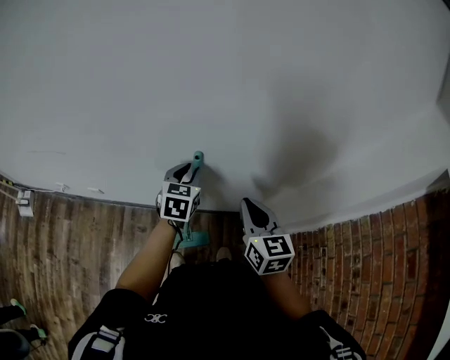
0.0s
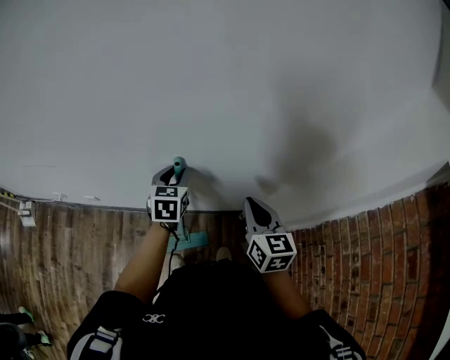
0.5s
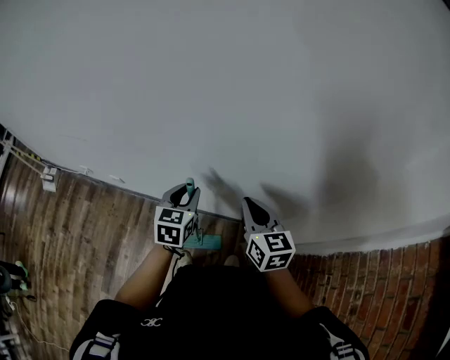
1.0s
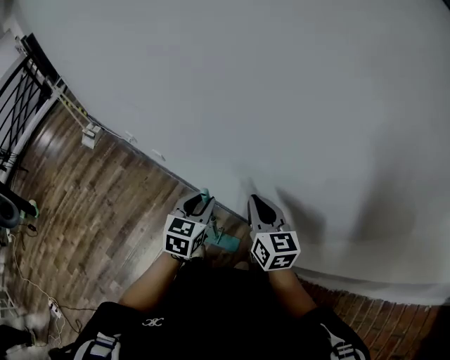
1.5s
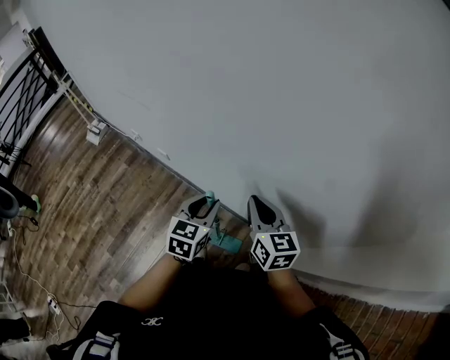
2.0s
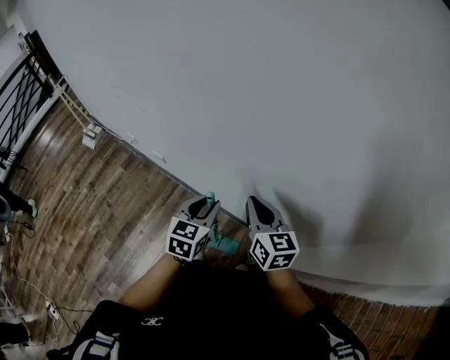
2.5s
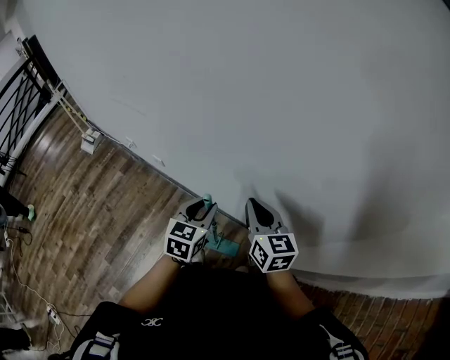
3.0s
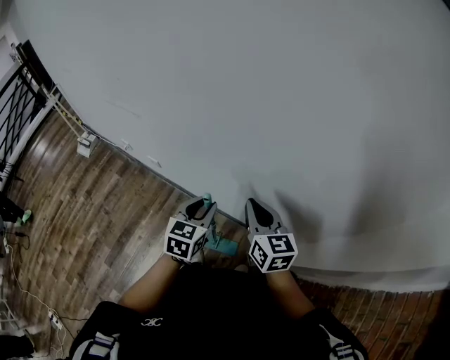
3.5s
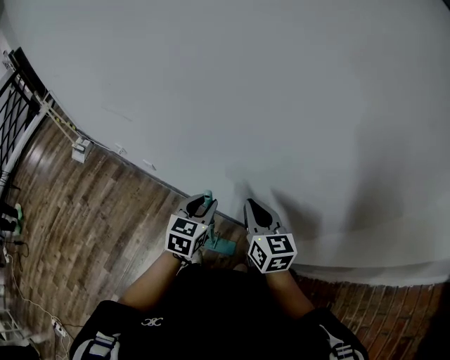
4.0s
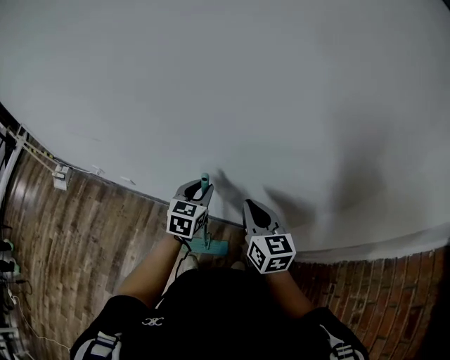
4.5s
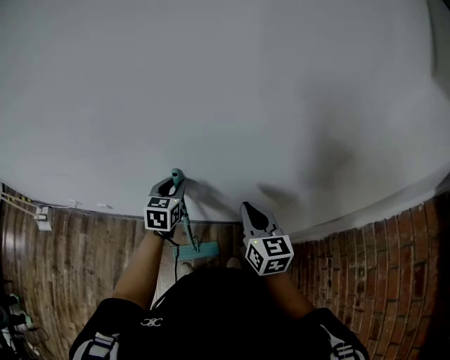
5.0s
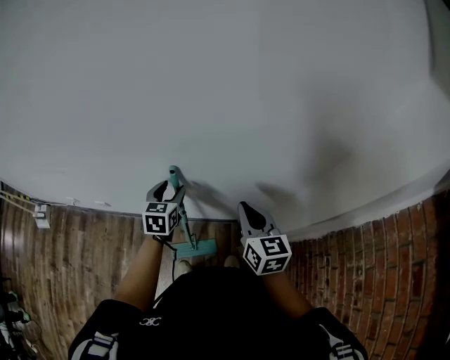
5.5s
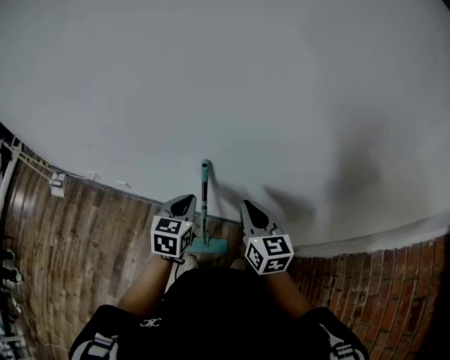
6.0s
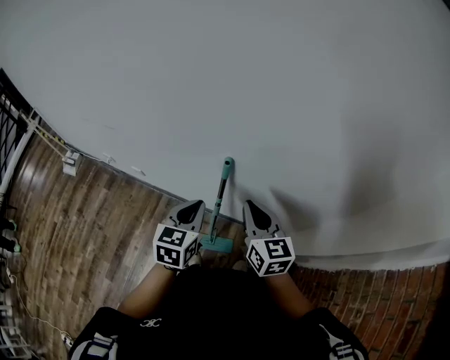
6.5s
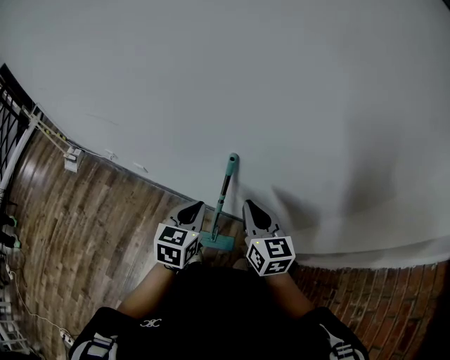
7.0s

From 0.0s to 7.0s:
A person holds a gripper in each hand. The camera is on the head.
From 0.0s to 2.0s: The right gripper moves about 10 cm, and rotates approximately 30 degrees. Meanwhile the left gripper shifts by about 15 cm, and changes its angle by roughly 20 degrees.
From 2.0s to 3.5s: The grippers move only a little.
From 3.5s to 5.0s: The right gripper is displaced to the right by some 15 cm, and rotates some 30 degrees. Meanwhile the left gripper heads forward and to the right, covering roughly 15 cm.
From 5.0s to 7.0s: The left gripper shifts approximately 15 cm backward and to the left, and closes up; the right gripper moves to the left, approximately 10 cm.

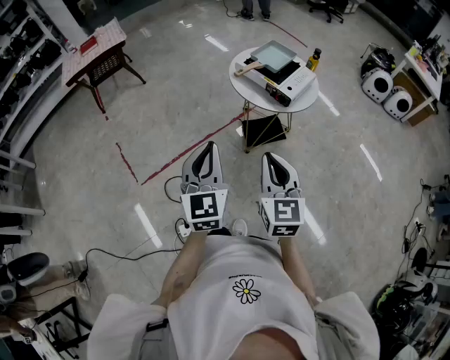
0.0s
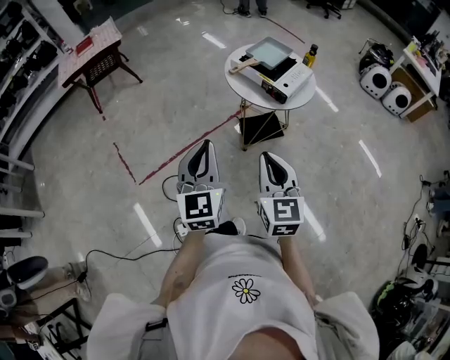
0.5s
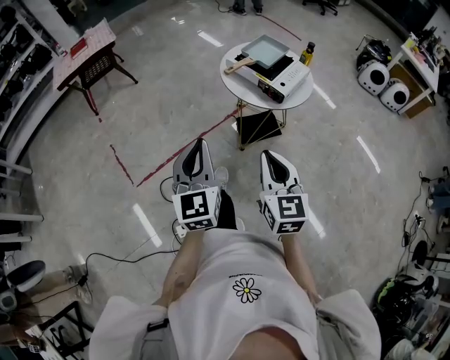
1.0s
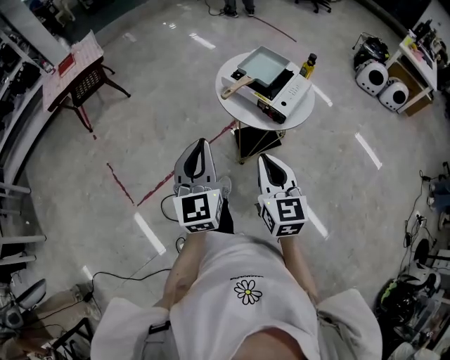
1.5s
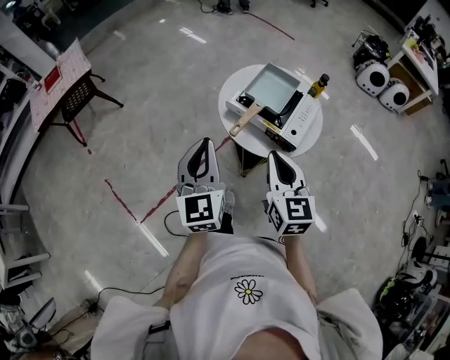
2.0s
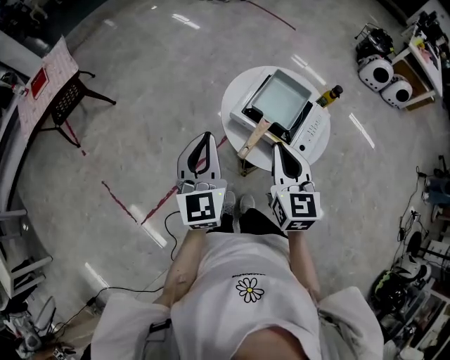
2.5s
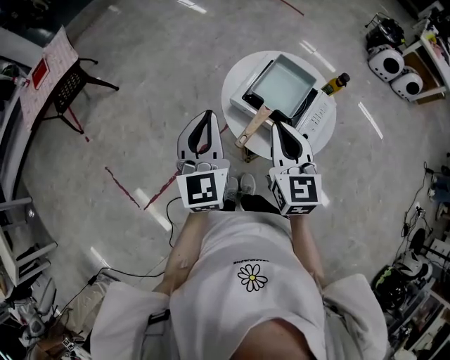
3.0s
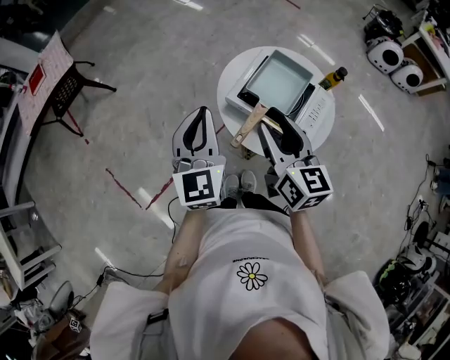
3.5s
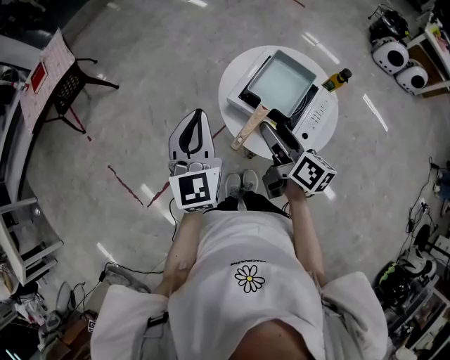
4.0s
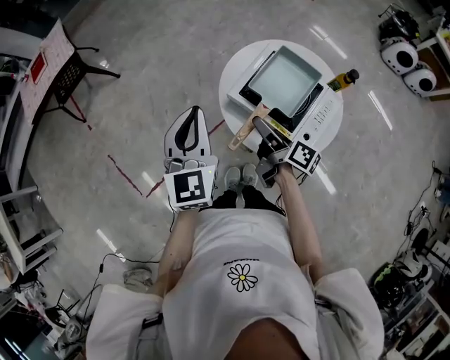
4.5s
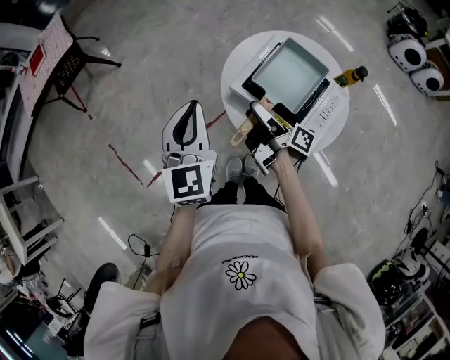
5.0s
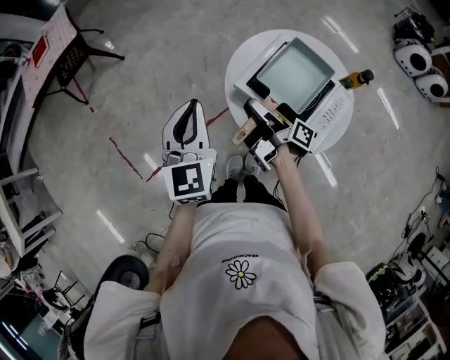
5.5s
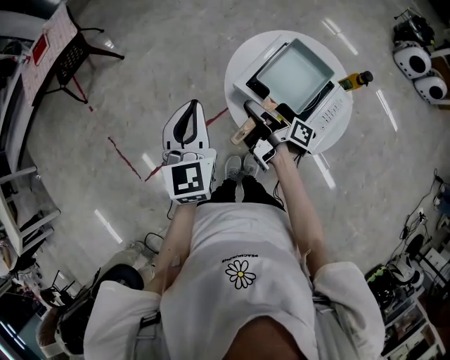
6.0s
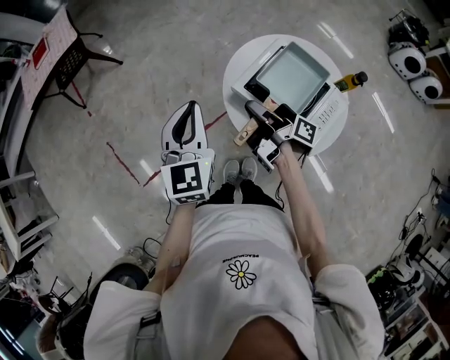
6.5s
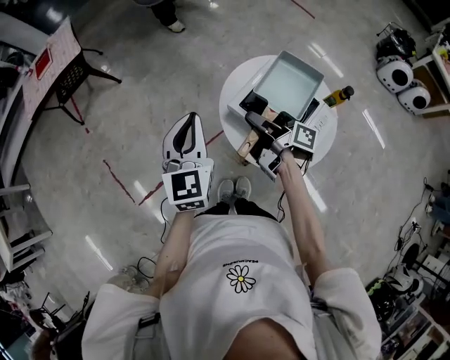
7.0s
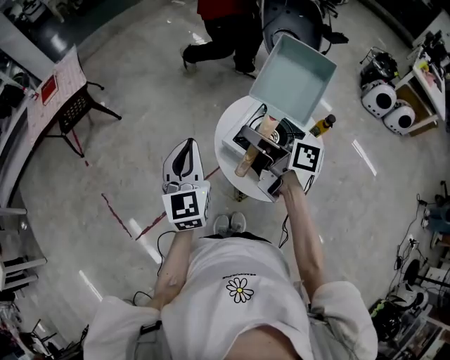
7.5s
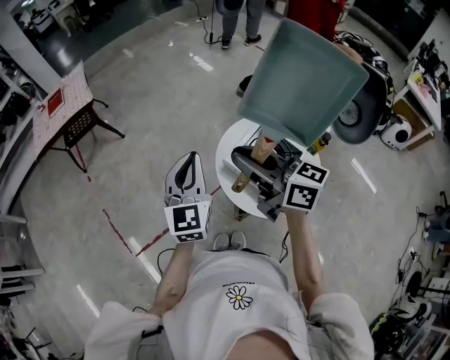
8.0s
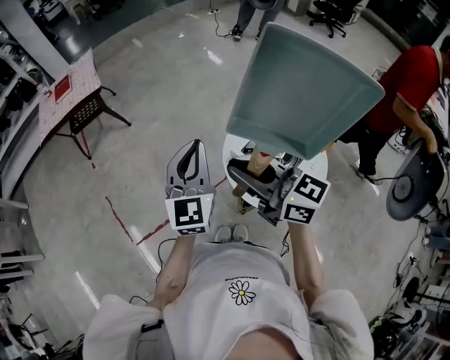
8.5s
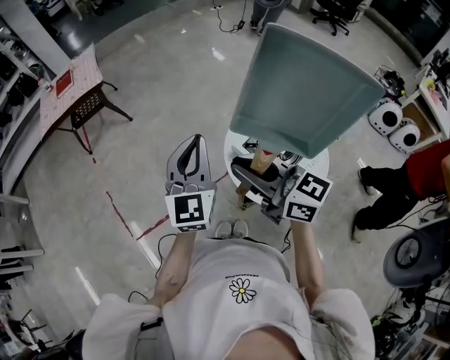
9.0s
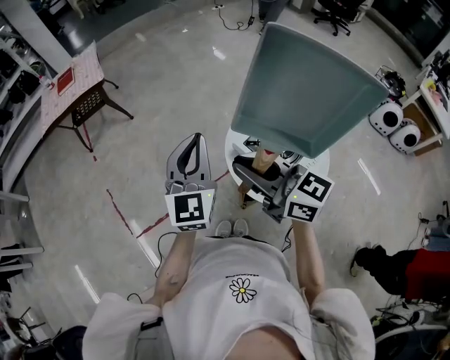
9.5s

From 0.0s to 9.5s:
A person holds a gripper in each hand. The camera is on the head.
From 0.0s to 2.0s: Both grippers travel together forward, about 30 cm.
From 2.0s to 4.0s: The right gripper heads forward and downward, covering about 20 cm, twists roughly 50 degrees clockwise, seen from behind, and opens up. The left gripper moves forward, roughly 15 cm.
From 4.0s to 5.5s: The right gripper shifts roughly 15 cm downward, forward and to the left, twists some 50 degrees clockwise, seen from behind, and closes up.
From 5.5s to 7.5s: The right gripper shifts roughly 20 cm upward, and swivels about 40 degrees.
From 7.5s to 9.5s: The right gripper heads to the left, upward and backward, covering roughly 15 cm, and twists approximately 50 degrees counterclockwise, seen from behind. The left gripper goes roughly 5 cm upward.

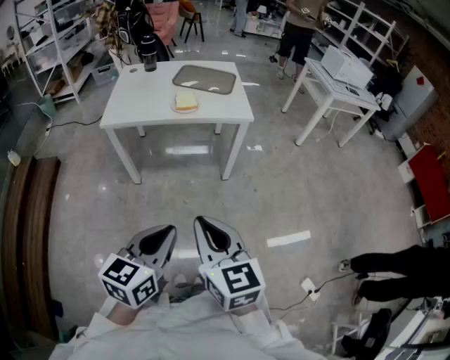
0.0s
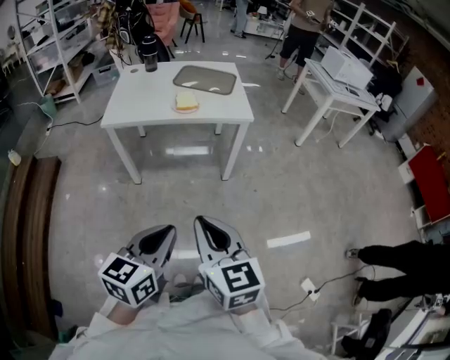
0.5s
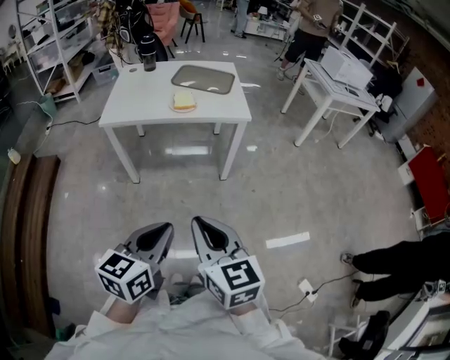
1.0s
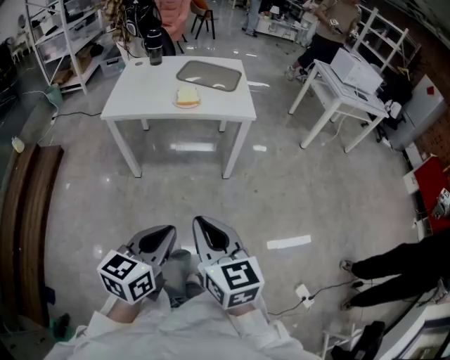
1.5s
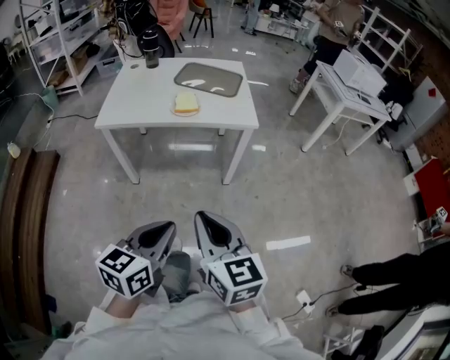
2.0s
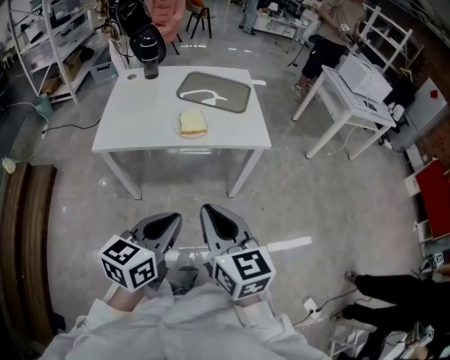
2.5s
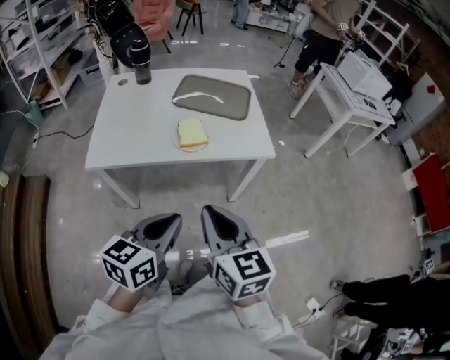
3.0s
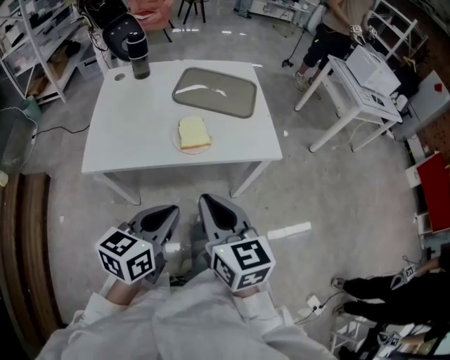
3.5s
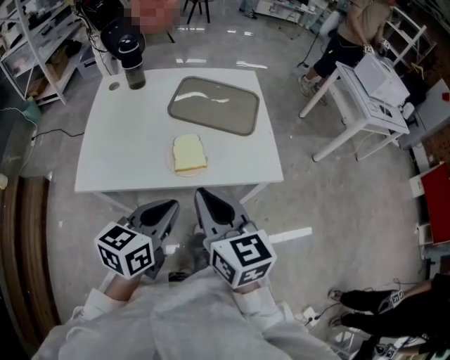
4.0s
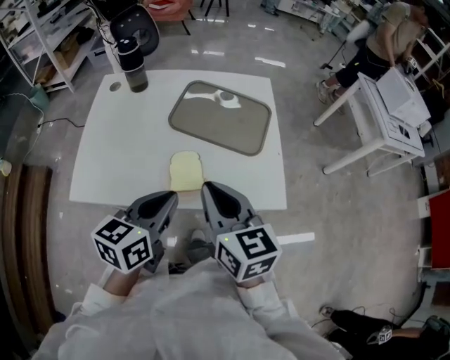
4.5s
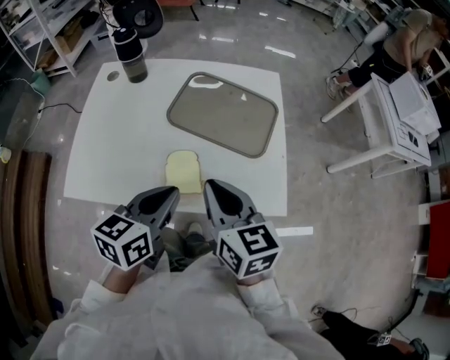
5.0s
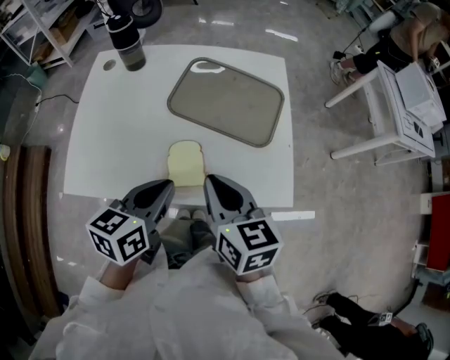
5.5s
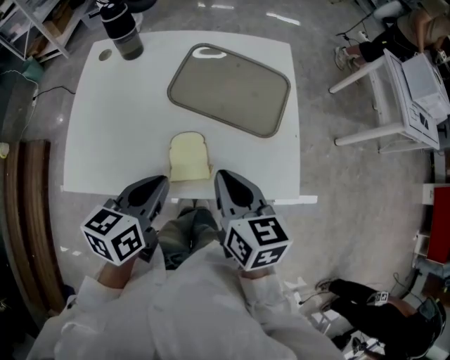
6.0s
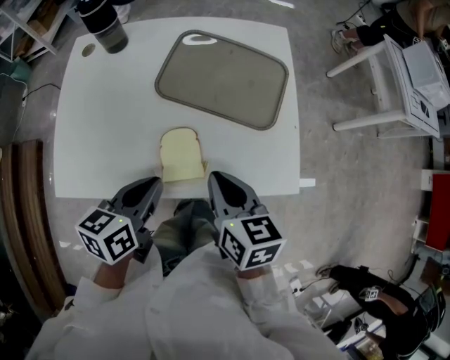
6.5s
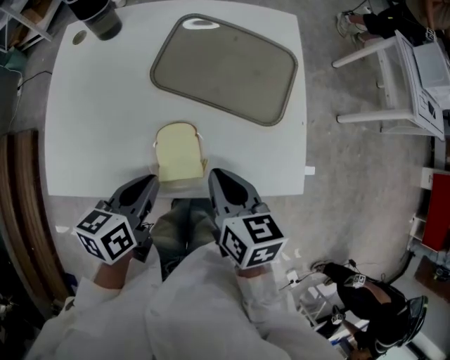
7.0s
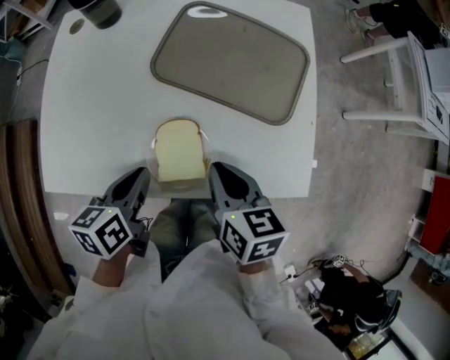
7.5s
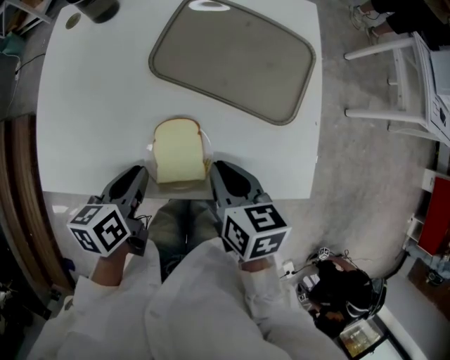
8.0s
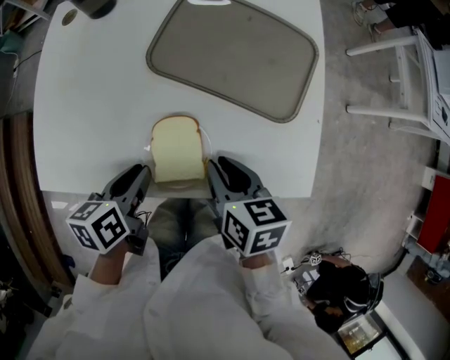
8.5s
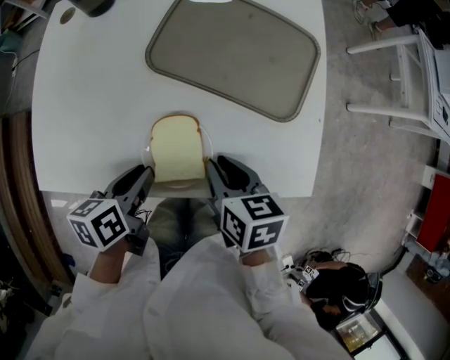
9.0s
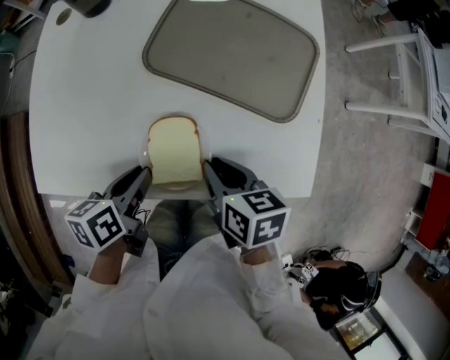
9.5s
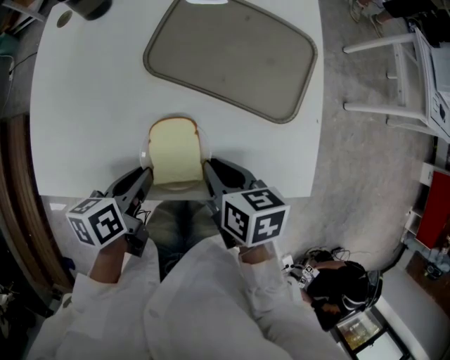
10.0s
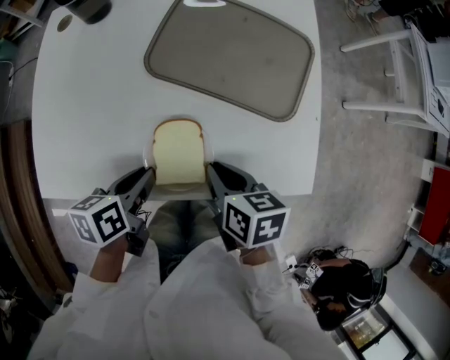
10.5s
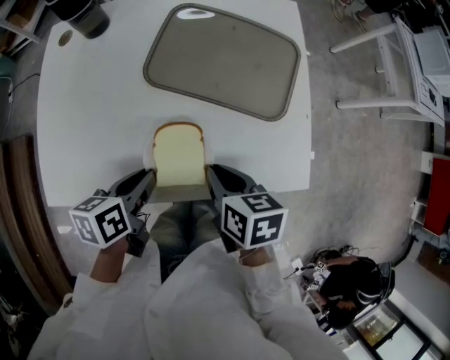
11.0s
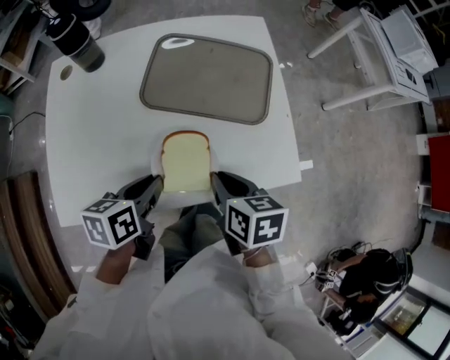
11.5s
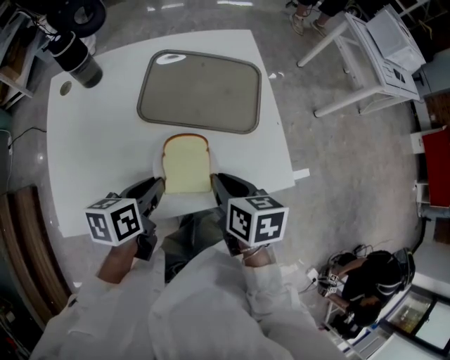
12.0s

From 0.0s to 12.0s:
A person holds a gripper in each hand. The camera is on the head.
From 0.0s to 2.0s: The grippers both shift forward by about 10 cm.
From 2.0s to 4.0s: The pair of grippers is taken forward, approximately 40 cm.
From 4.0s to 6.0s: The left gripper shifts approximately 20 cm forward; the right gripper moves forward and downward, roughly 20 cm.
From 6.0s to 8.0s: The grippers both shift downward by roughly 15 cm. The left gripper swivels approximately 20 degrees.
From 8.0s to 10.0s: There are only small adjustments of the grippers.
From 10.0s to 12.0s: The grippers both shift upward by approximately 10 cm. The left gripper changes its angle by about 20 degrees.
